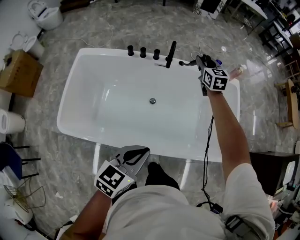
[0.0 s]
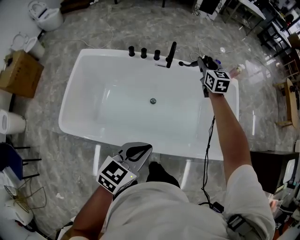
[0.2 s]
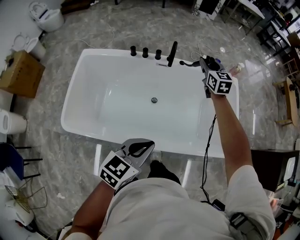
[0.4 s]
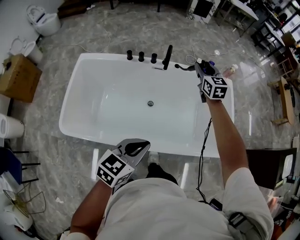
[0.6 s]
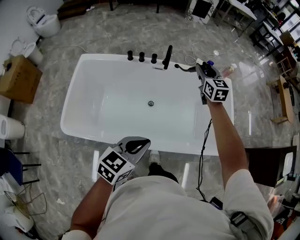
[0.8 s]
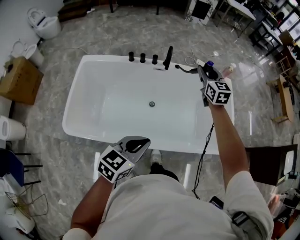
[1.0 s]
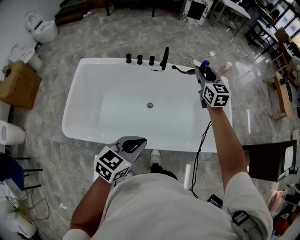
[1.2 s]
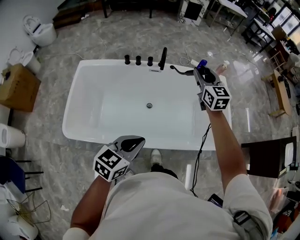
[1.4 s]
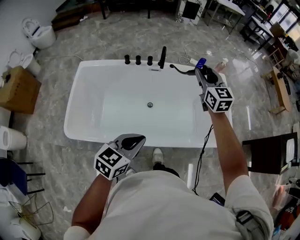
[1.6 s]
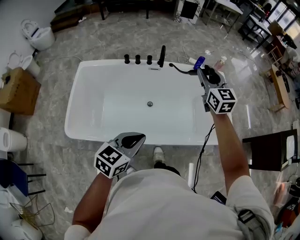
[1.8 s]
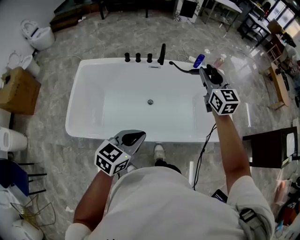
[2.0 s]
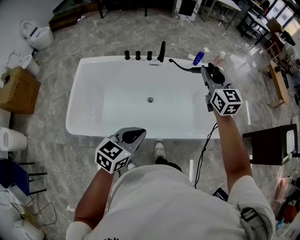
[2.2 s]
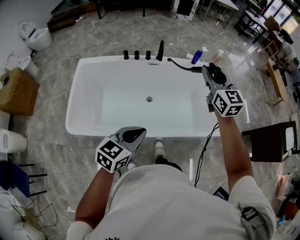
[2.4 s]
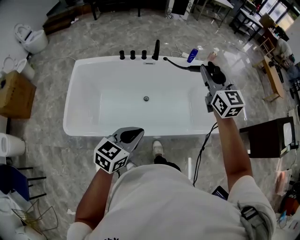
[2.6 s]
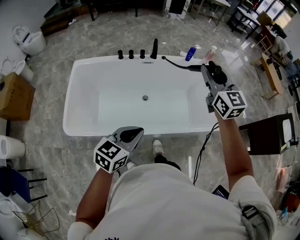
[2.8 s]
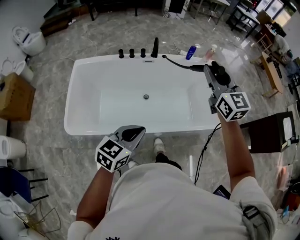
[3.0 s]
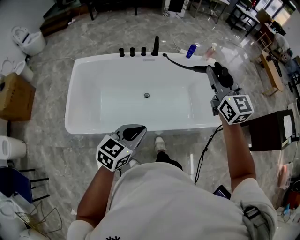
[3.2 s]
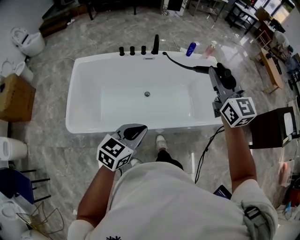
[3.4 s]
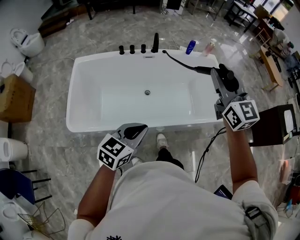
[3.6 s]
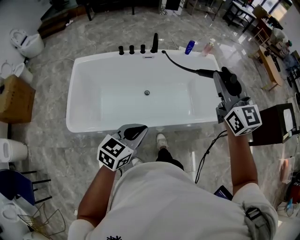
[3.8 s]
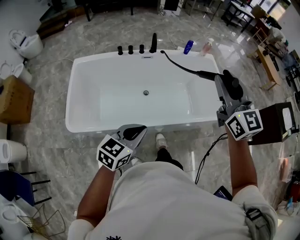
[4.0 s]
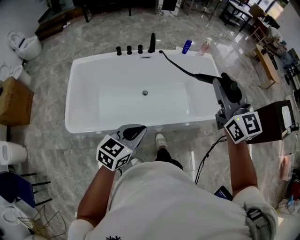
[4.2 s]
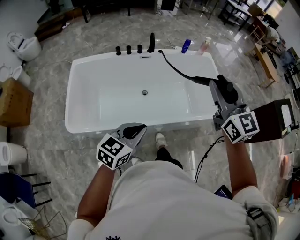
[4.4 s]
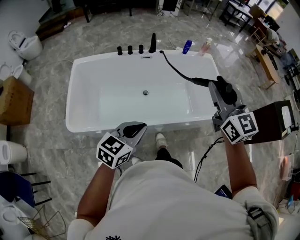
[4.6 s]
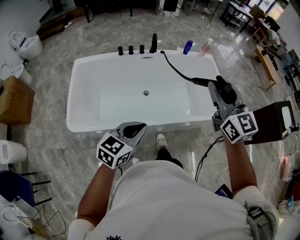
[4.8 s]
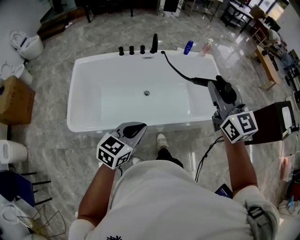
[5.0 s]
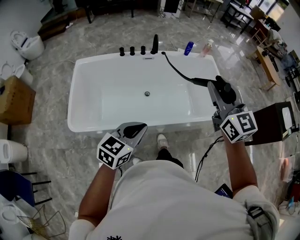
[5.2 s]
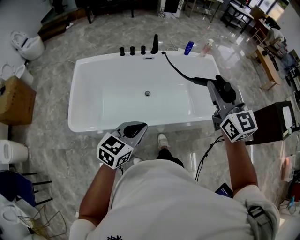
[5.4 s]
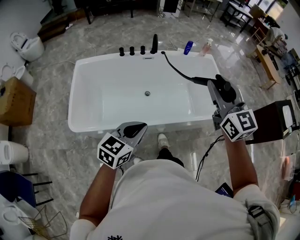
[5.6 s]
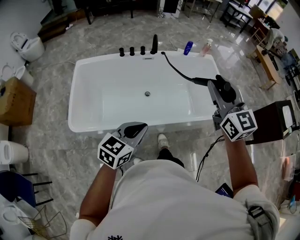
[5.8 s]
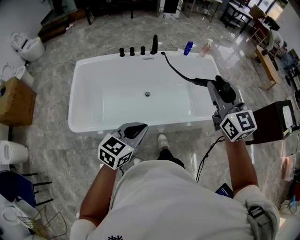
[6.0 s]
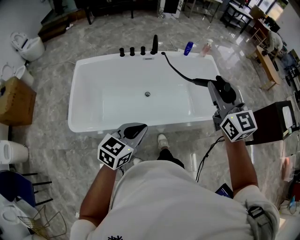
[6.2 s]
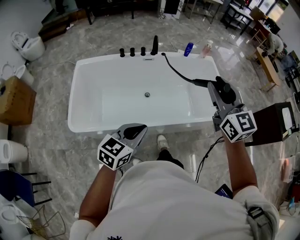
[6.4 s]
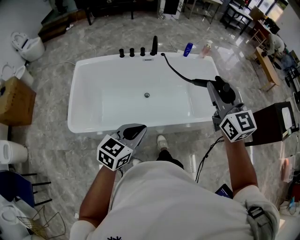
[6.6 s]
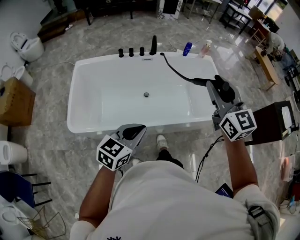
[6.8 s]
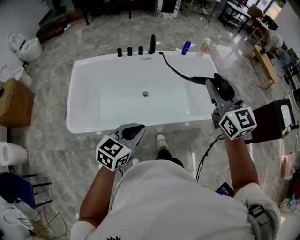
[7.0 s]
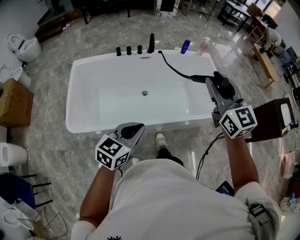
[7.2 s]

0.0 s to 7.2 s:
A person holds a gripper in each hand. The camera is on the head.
0.0 to 1.4 s: The right gripper moves backward and upward, about 20 cm. Meanwhile the left gripper heads backward, covering roughly 5 cm.
1.4 to 2.8 s: The left gripper is displaced backward by about 5 cm. Meanwhile the right gripper is displaced backward and upward by about 20 cm.
2.8 to 4.4 s: The left gripper moves backward, some 5 cm; the right gripper is displaced backward by about 15 cm.
4.4 to 5.8 s: The grippers move only a little.
5.8 to 7.2 s: Both grippers stay about where they are.

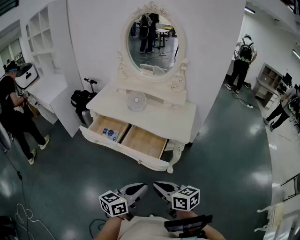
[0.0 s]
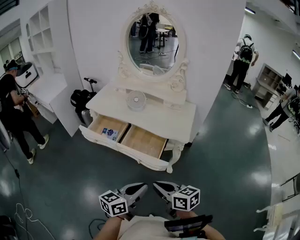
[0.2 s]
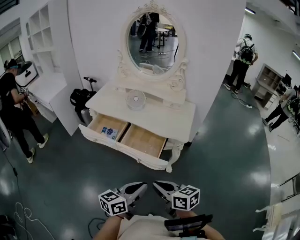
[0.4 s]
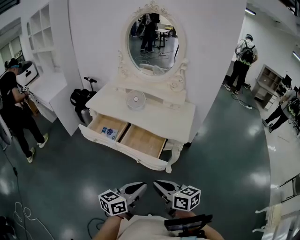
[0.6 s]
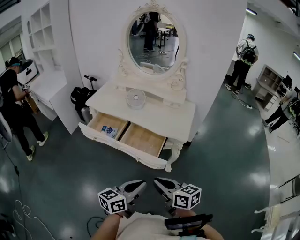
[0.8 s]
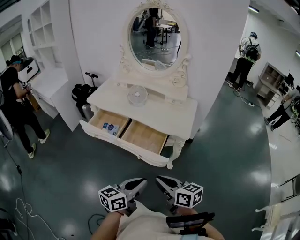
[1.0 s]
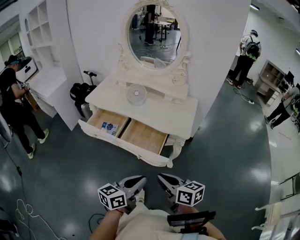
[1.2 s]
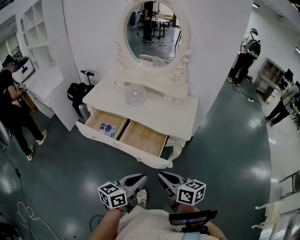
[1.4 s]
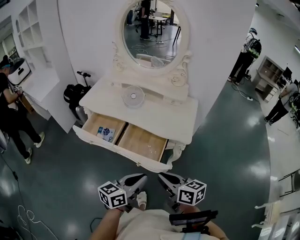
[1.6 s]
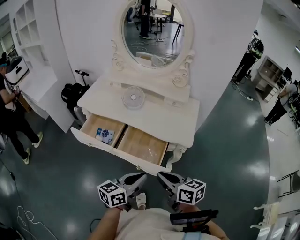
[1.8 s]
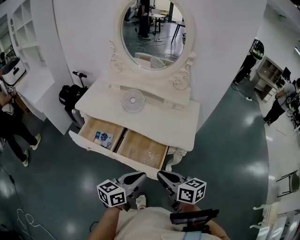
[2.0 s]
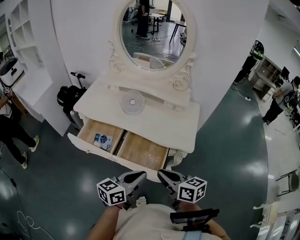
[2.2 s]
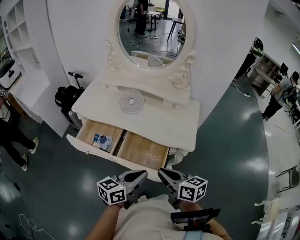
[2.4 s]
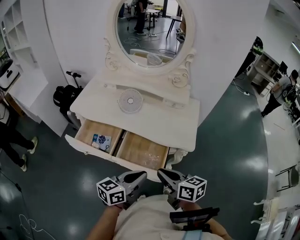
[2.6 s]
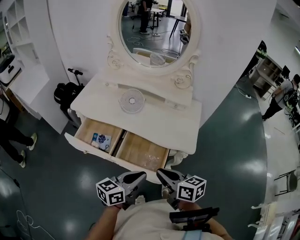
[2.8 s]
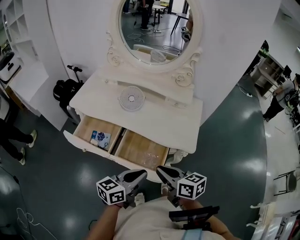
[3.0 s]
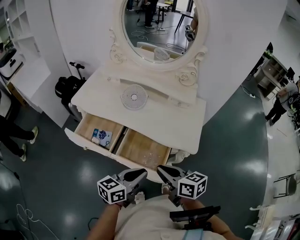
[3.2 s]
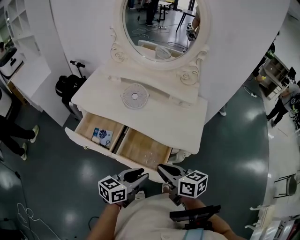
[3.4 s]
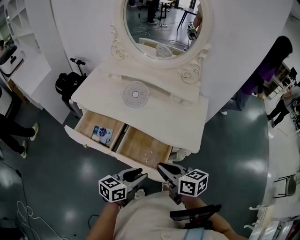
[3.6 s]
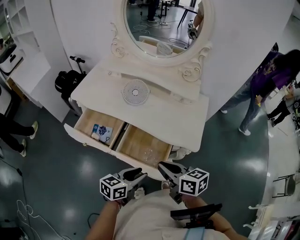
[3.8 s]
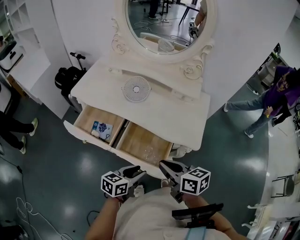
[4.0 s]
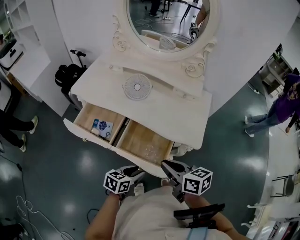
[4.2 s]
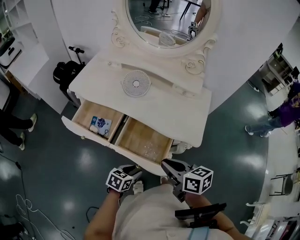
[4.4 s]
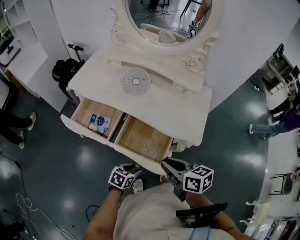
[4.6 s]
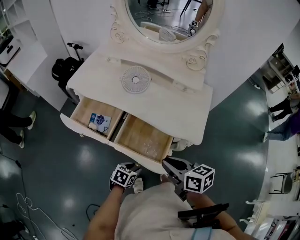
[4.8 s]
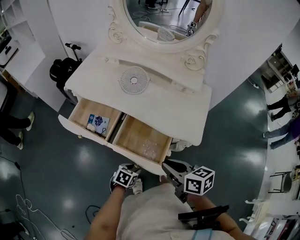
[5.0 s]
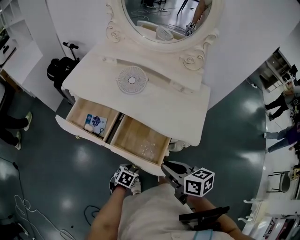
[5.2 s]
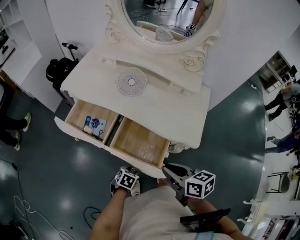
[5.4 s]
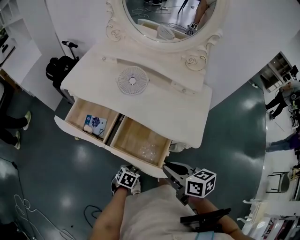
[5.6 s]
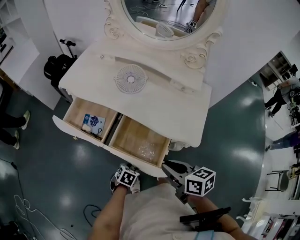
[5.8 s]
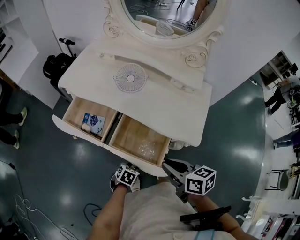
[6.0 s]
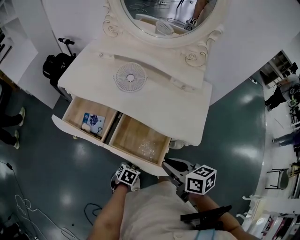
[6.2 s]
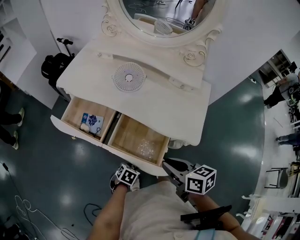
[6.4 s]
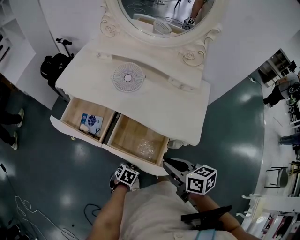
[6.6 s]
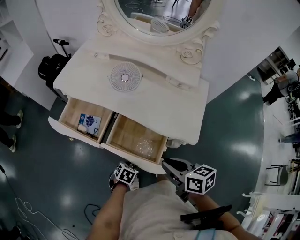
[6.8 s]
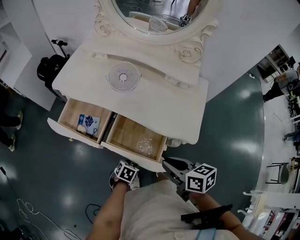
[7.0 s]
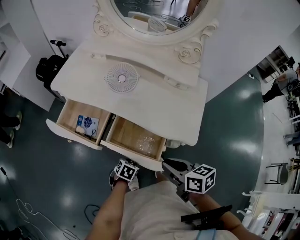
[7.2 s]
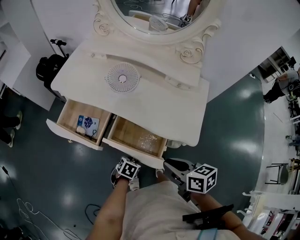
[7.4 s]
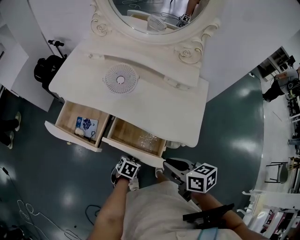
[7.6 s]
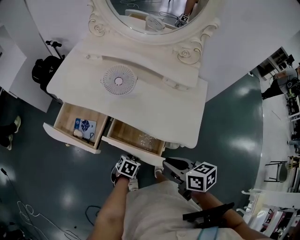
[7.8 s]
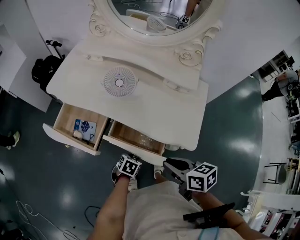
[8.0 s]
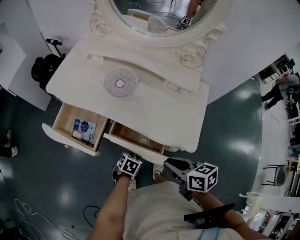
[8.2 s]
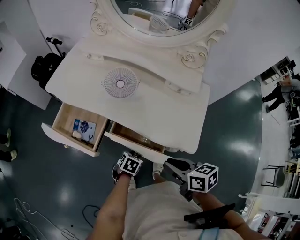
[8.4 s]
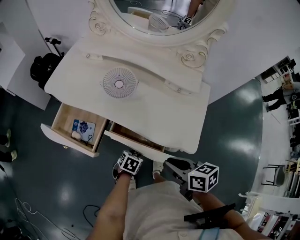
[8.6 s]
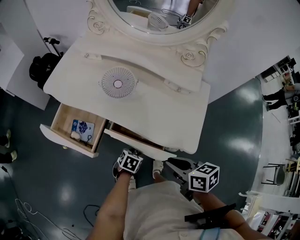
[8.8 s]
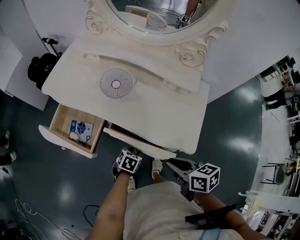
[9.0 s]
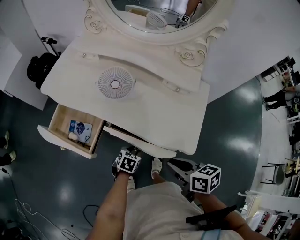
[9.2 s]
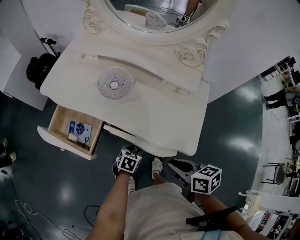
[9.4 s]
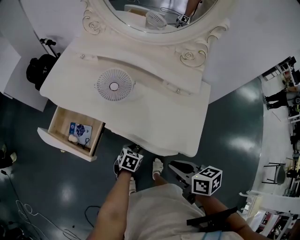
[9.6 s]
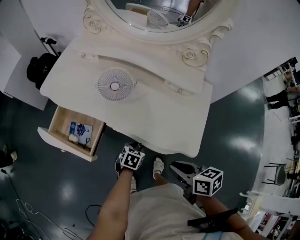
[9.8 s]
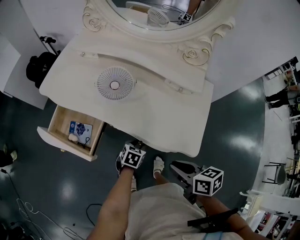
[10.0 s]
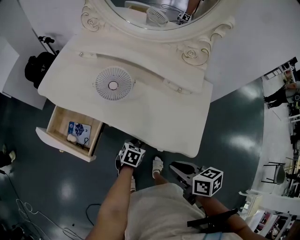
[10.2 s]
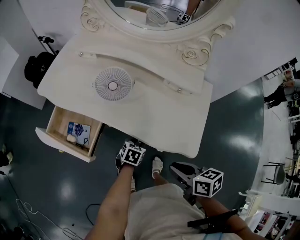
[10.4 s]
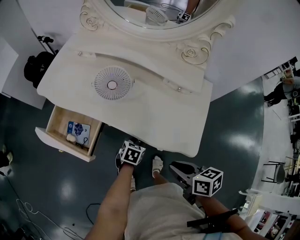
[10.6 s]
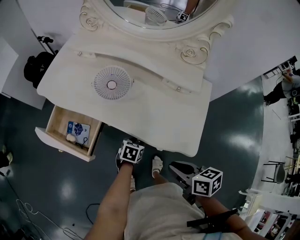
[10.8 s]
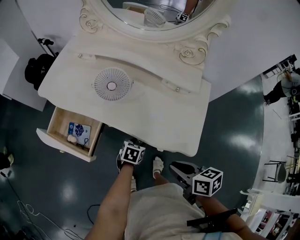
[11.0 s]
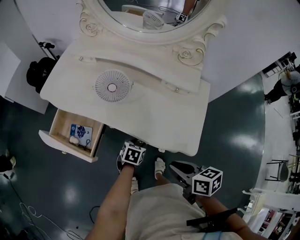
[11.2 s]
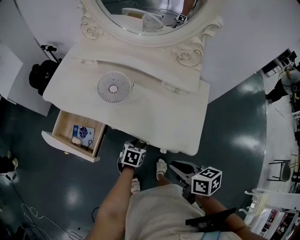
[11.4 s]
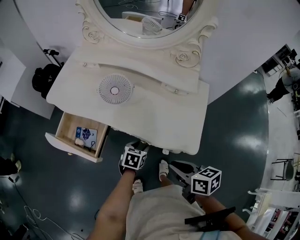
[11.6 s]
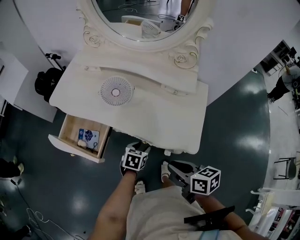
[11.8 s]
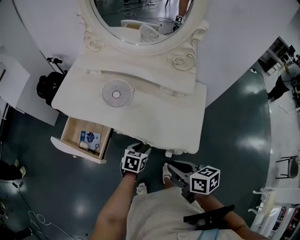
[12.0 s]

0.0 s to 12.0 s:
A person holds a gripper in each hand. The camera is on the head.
0.0 to 1.6 s: Both grippers move forward, some 10 cm.
1.6 to 3.0 s: The two grippers go roughly 15 cm forward.
3.0 to 4.4 s: The left gripper shifts approximately 20 cm downward, angles its fingers downward, by approximately 30 degrees, and opens.
4.4 to 6.0 s: The left gripper travels downward by roughly 10 cm, and rotates about 20 degrees.
6.0 to 7.6 s: The left gripper is displaced forward by about 5 cm.
7.6 to 9.0 s: The right gripper changes place by about 5 cm. The left gripper goes some 10 cm forward.
9.0 to 10.4 s: The left gripper moves forward, some 5 cm.
10.4 to 12.0 s: The left gripper heads upward, covering some 10 cm.

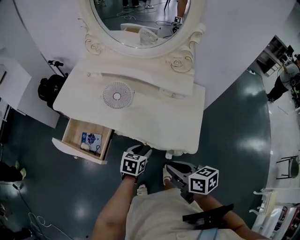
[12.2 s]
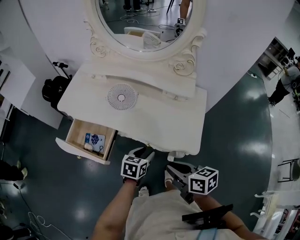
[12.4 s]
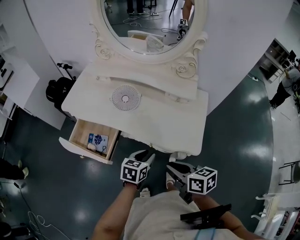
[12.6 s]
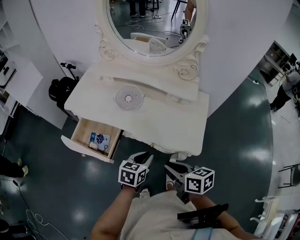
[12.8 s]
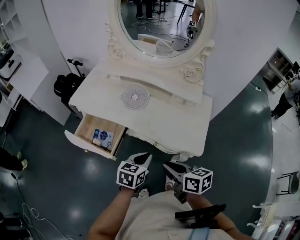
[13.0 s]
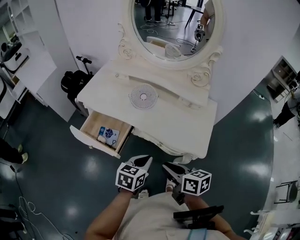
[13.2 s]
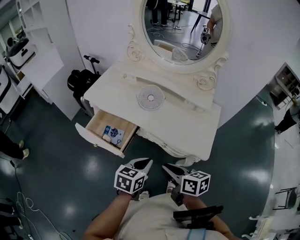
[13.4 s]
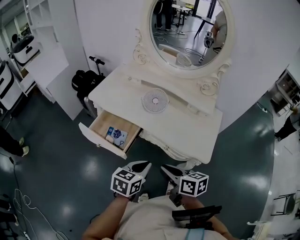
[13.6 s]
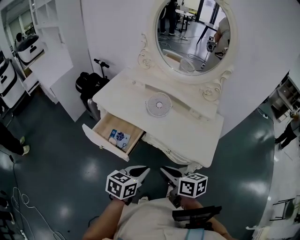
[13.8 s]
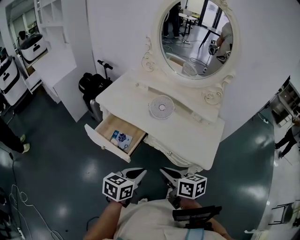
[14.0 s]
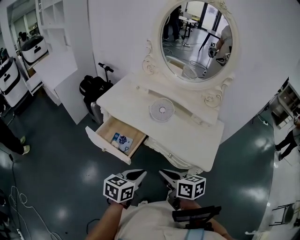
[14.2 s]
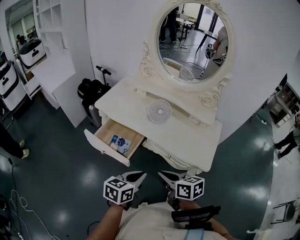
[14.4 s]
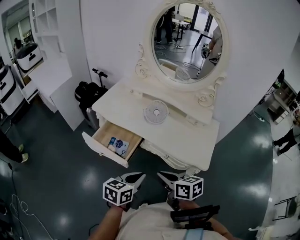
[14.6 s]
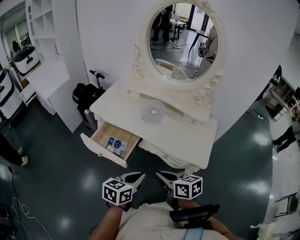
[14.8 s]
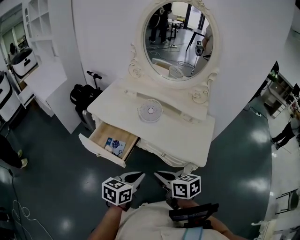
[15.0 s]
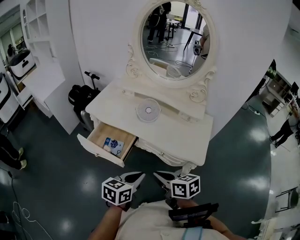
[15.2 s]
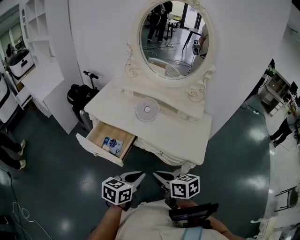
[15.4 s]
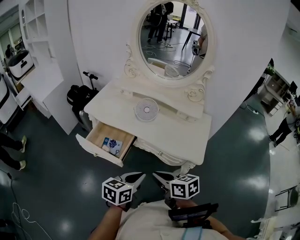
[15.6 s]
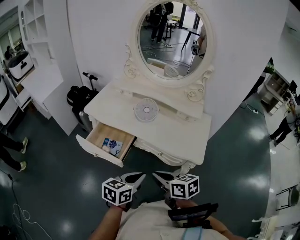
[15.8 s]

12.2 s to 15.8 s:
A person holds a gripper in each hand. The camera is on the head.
12.2 to 14.0 s: The right gripper moves to the left, about 15 cm. The left gripper moves upward, to the left and backward, roughly 25 cm, swivels approximately 20 degrees, and closes.
14.0 to 15.8 s: The grippers stay close to where they were, moving slightly.

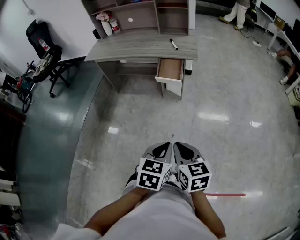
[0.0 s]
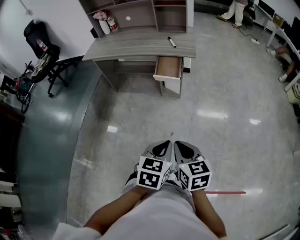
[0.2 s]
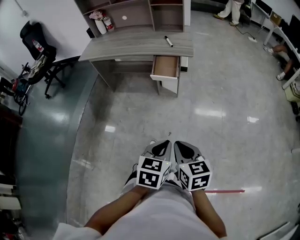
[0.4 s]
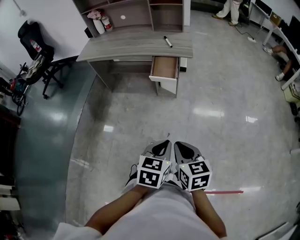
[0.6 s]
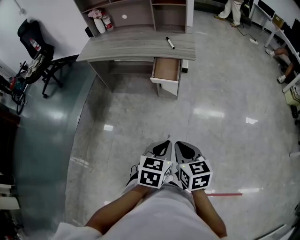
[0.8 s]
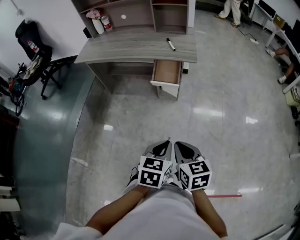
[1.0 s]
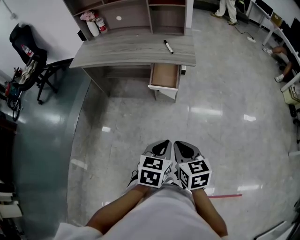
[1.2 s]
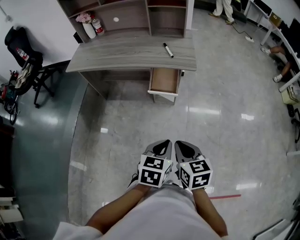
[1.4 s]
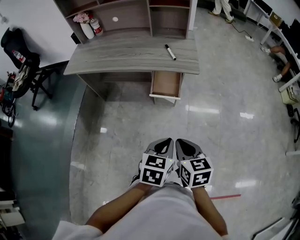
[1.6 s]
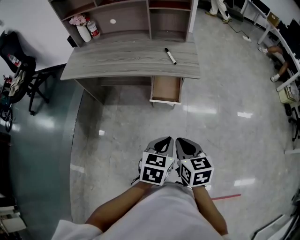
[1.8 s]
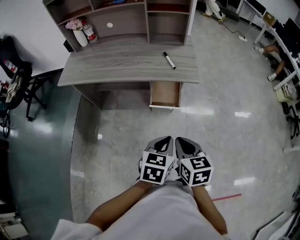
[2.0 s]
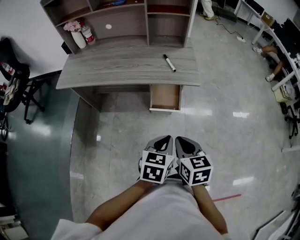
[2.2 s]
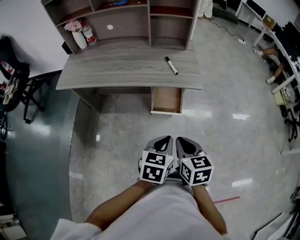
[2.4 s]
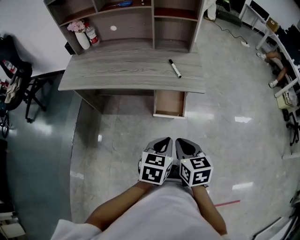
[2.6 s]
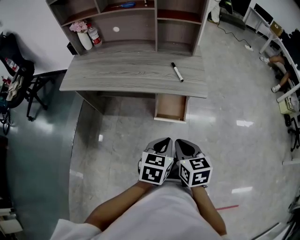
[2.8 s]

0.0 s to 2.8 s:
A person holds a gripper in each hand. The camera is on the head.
0.0 to 1.4 s: Both grippers move forward, approximately 15 cm.
1.4 to 2.8 s: Both grippers travel together forward and to the left, some 20 cm.
